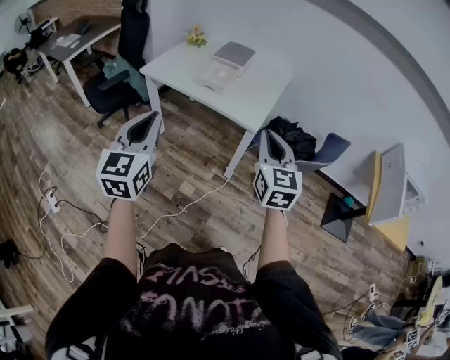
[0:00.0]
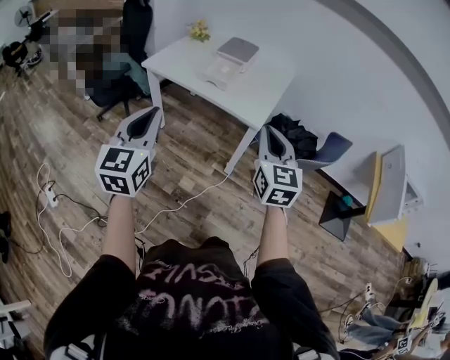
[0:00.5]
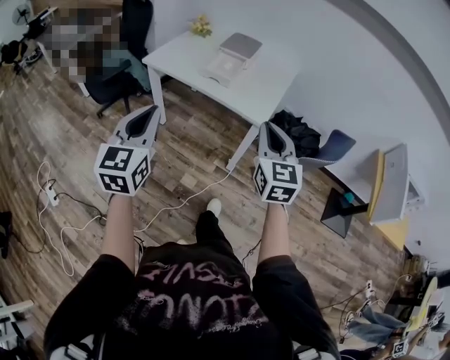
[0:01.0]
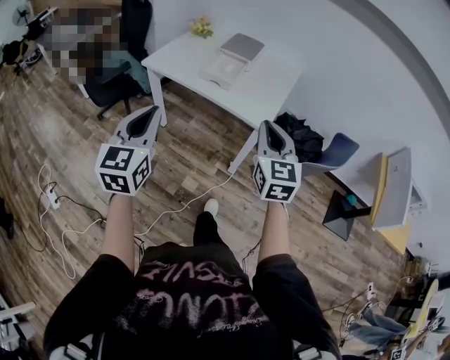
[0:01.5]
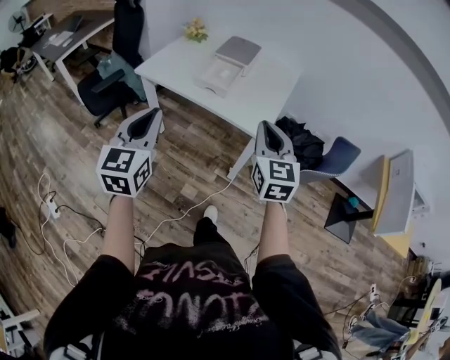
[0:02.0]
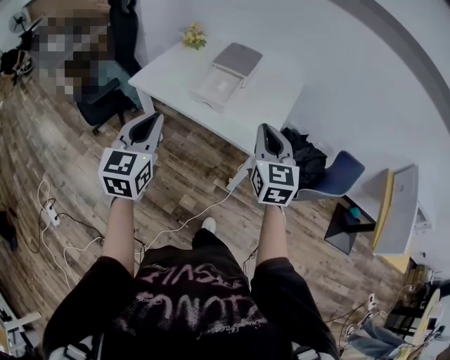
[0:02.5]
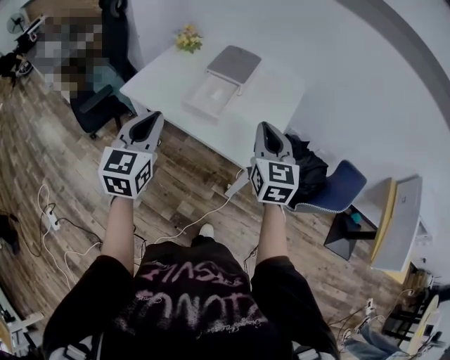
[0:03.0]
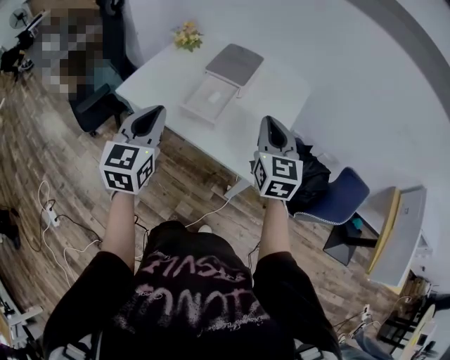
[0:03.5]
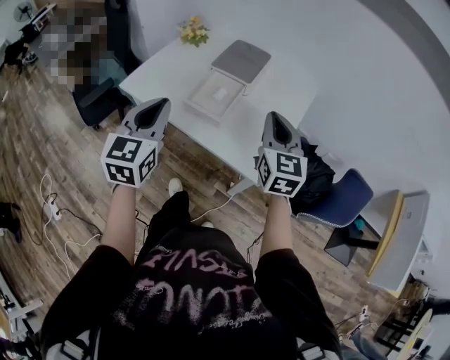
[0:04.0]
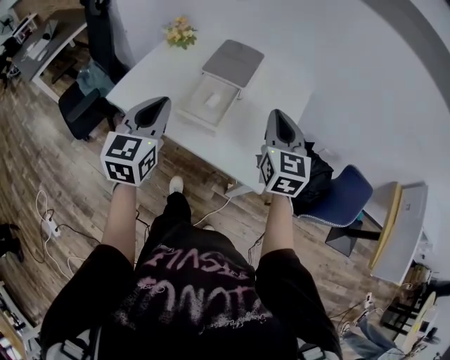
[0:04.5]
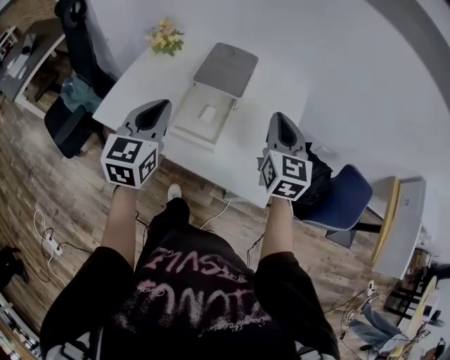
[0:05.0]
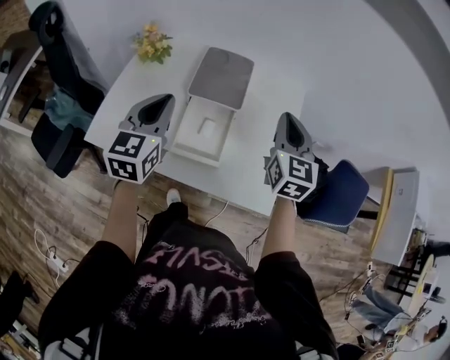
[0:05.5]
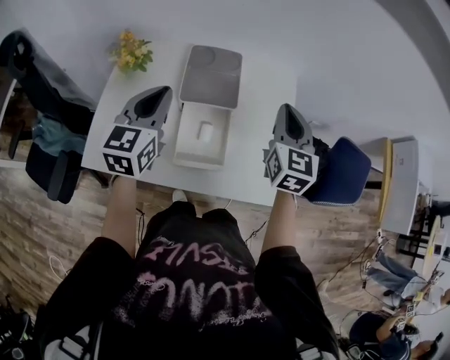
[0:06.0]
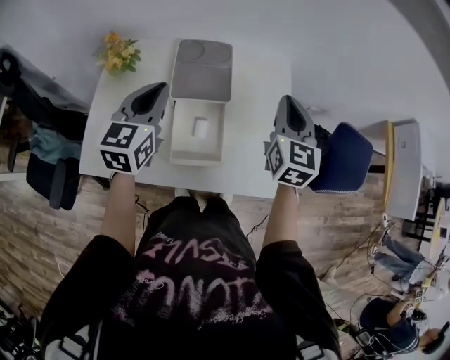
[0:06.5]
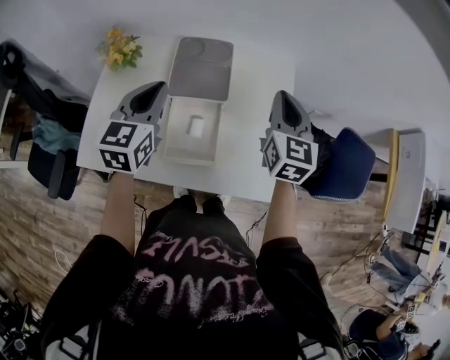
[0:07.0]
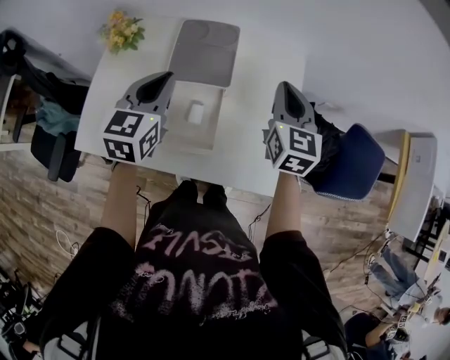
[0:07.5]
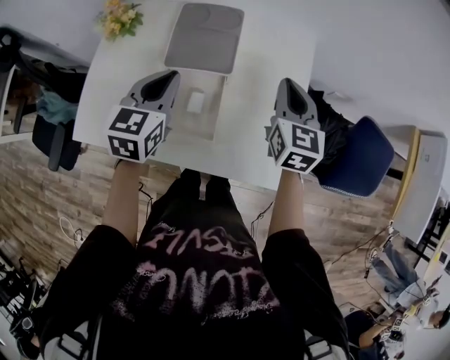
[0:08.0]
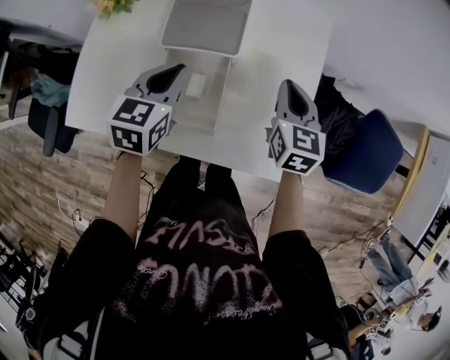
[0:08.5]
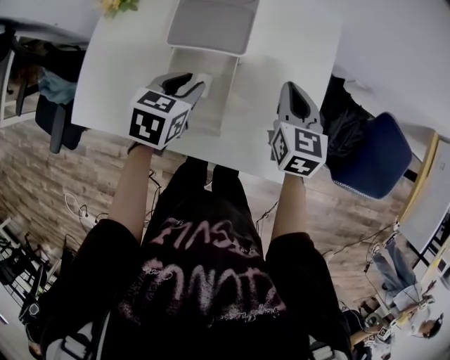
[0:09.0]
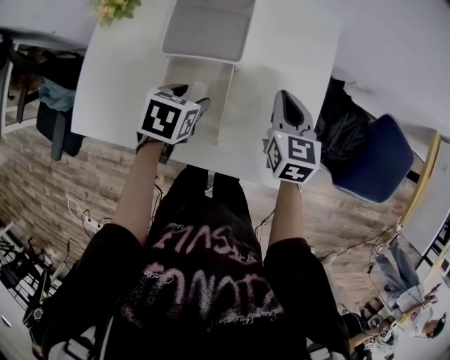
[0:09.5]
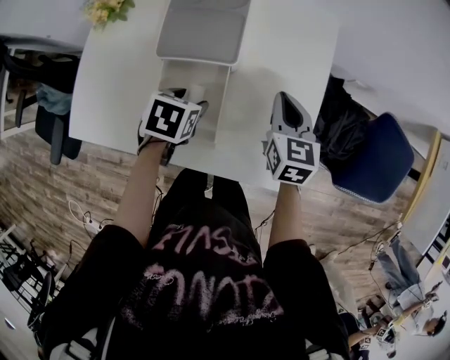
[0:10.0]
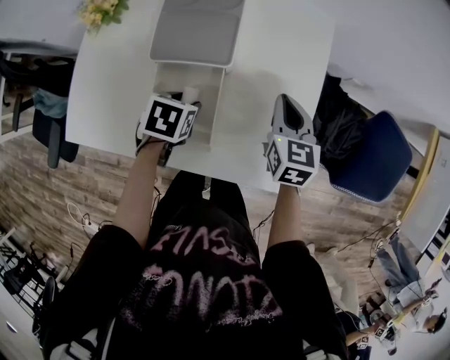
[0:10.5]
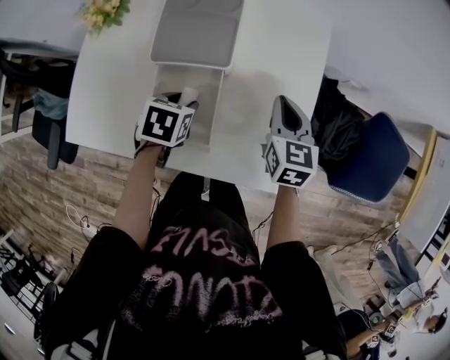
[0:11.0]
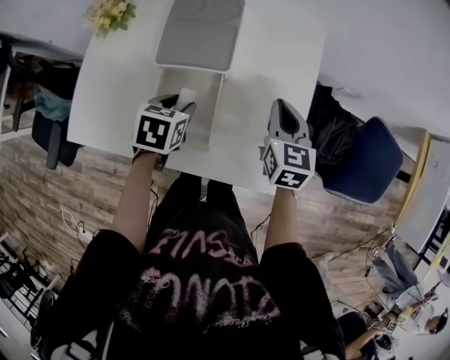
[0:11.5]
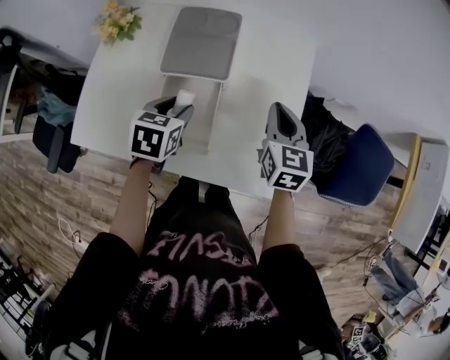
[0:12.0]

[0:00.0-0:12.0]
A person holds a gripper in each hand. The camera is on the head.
0:00.0 to 0:02.0: Both grippers travel together forward, approximately 10 cm.
0:02.0 to 0:04.0: Both grippers travel together forward, some 25 cm.
0:04.0 to 0:06.0: The left gripper ends up about 30 cm from where it was, and rotates about 30 degrees, while the right gripper shifts by approximately 20 cm, and changes its angle by some 30 degrees.
0:06.0 to 0:08.0: The right gripper heads downward, covering about 10 cm; the left gripper travels downward and to the right by approximately 10 cm.
0:08.0 to 0:10.0: The right gripper shifts some 10 cm downward. Meanwhile the left gripper goes about 20 cm downward, tips its fingers downward by some 40 degrees, and opens its fingers.
0:10.0 to 0:12.0: Both grippers travel together upward, roughly 5 cm.

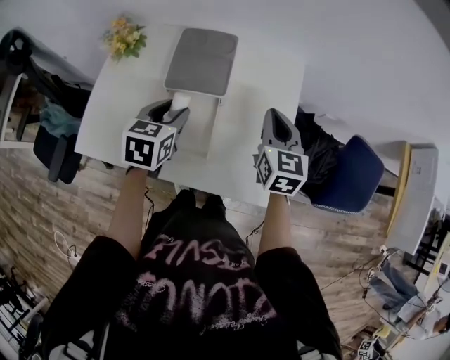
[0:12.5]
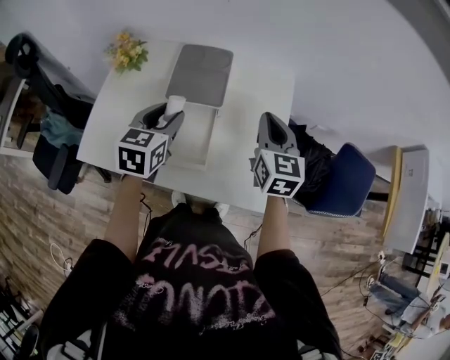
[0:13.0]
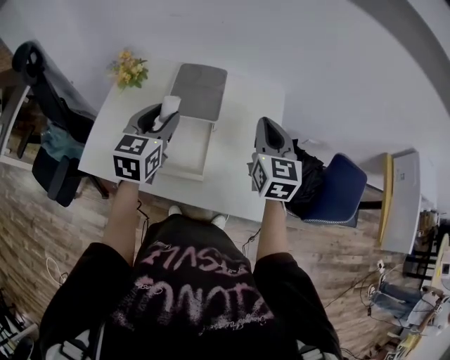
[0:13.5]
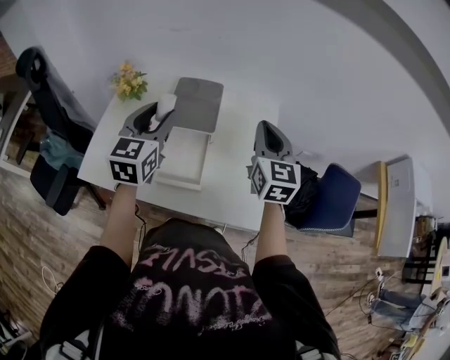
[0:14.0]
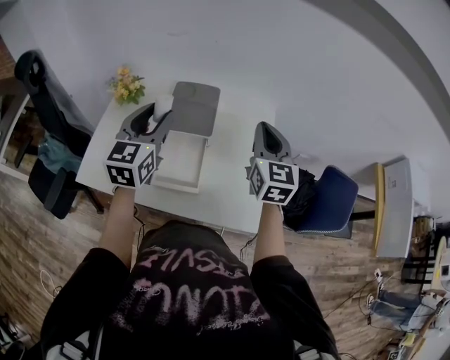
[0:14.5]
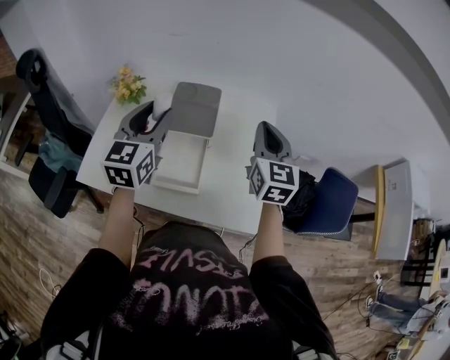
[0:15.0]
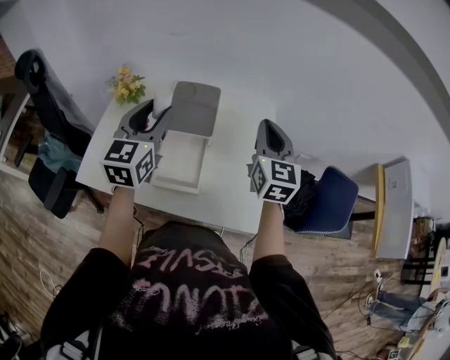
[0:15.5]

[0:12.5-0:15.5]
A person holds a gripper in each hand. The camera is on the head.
0:12.5 to 0:14.0: Both grippers travel together upward, approximately 15 cm. The left gripper rotates about 30 degrees.
0:14.0 to 0:15.5: The grippers move only a little.

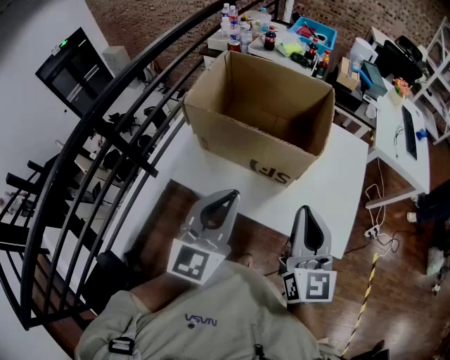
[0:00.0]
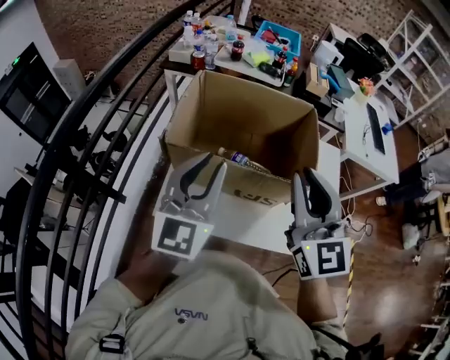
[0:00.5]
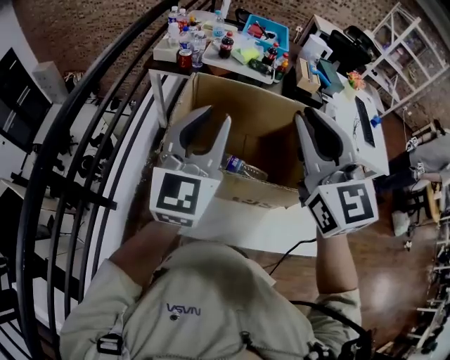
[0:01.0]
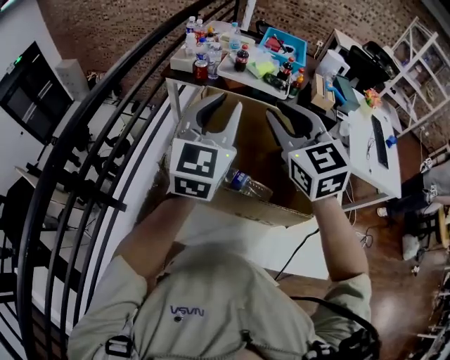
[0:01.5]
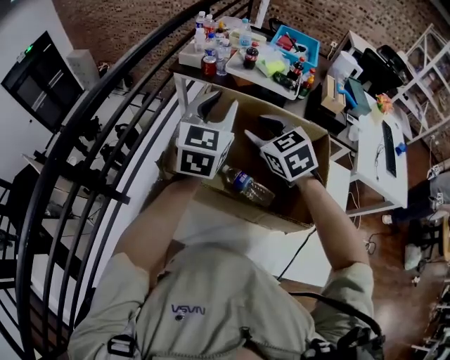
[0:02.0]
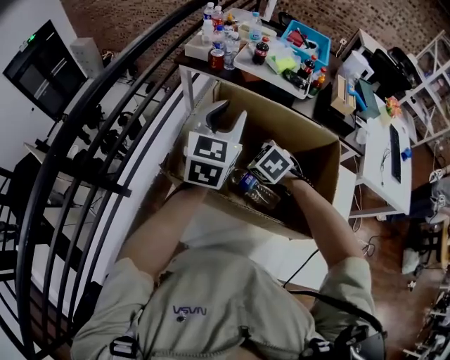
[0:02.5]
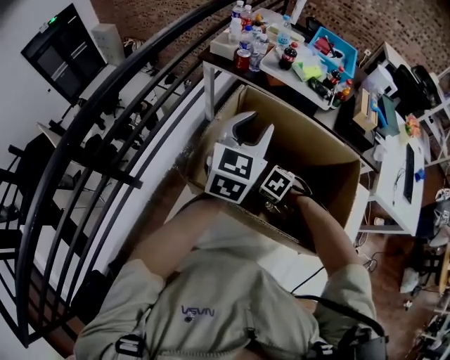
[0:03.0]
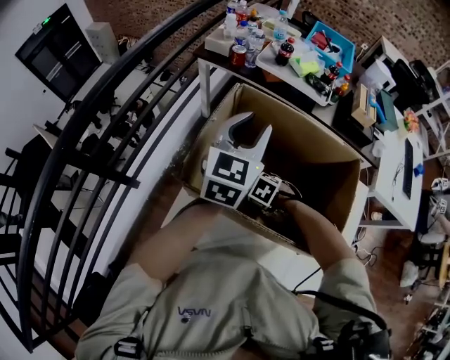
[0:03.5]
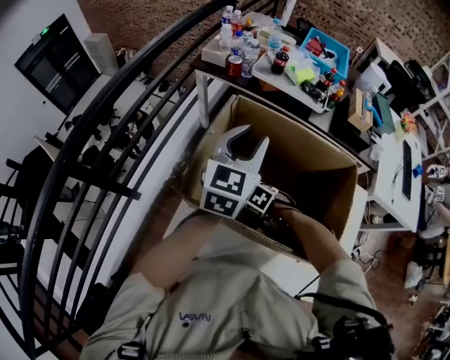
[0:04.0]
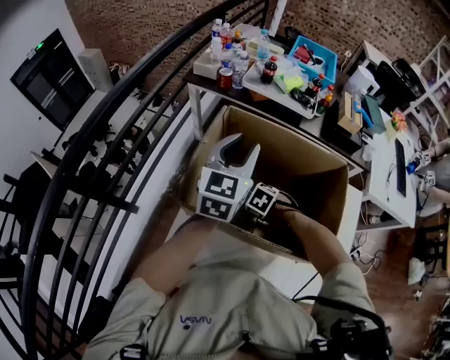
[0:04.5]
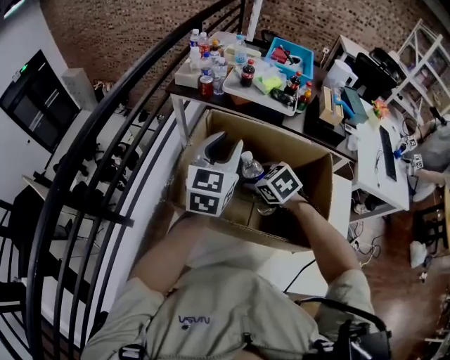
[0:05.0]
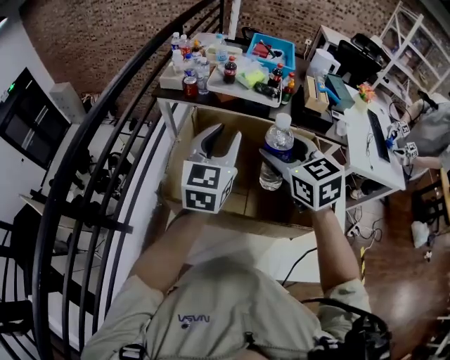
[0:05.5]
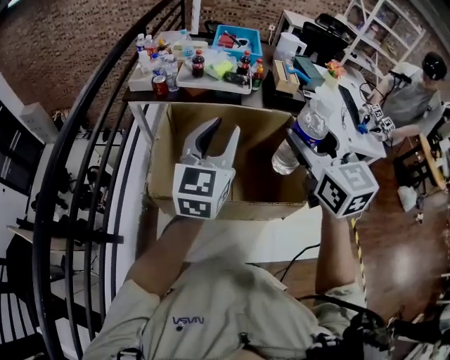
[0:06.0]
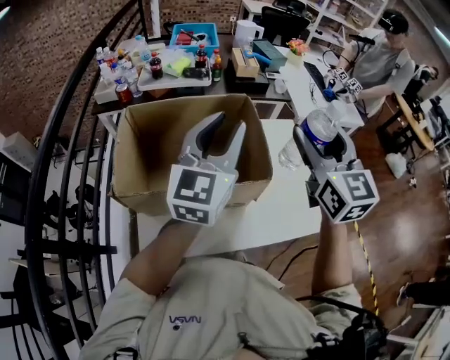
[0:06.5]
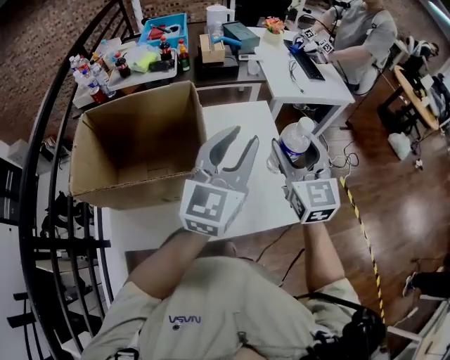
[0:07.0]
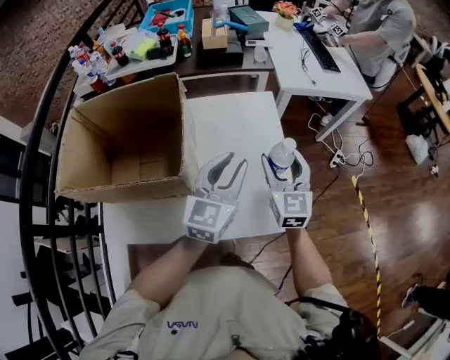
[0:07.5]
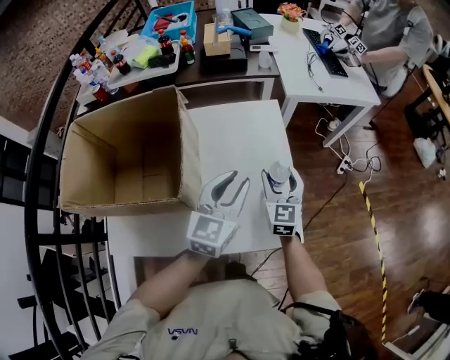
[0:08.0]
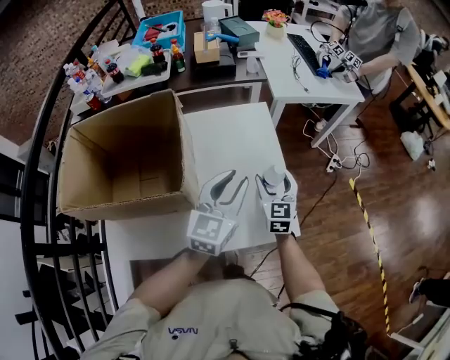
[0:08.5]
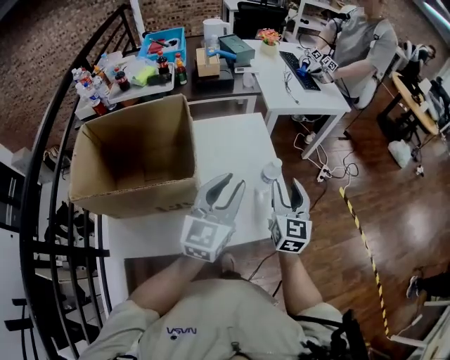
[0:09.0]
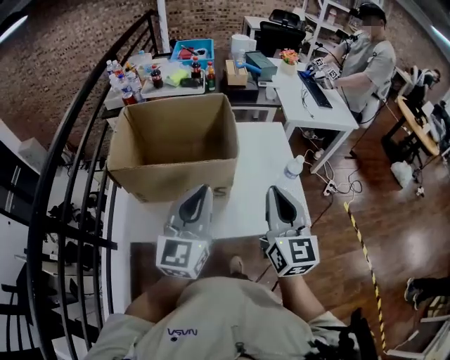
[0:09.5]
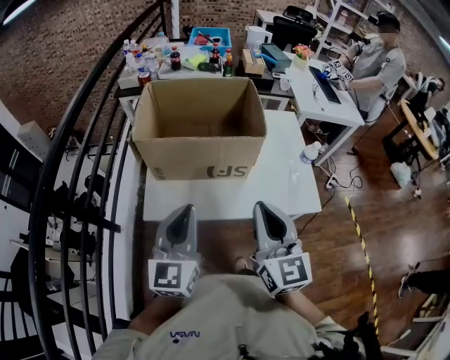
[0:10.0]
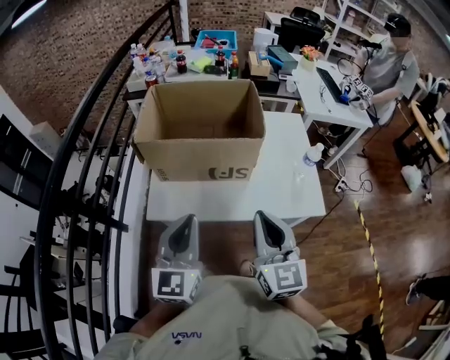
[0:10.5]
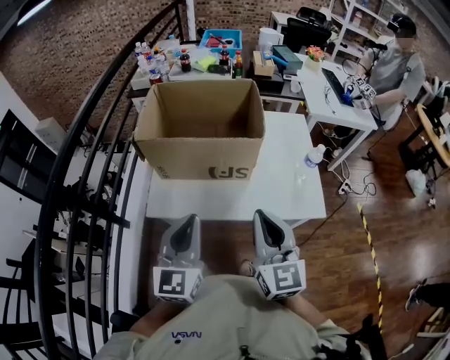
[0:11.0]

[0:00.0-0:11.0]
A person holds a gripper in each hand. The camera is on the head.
0:00.0 to 0:02.0: Both grippers travel together forward, about 40 cm. The right gripper tips its fingers downward by some 30 degrees, and opens. The left gripper opens its fingers.
0:02.0 to 0:03.5: The right gripper heads downward, covering about 30 cm, tilts its fingers approximately 50 degrees downward, and opens up.
0:03.5 to 0:05.5: The right gripper heads upward, covering roughly 35 cm, and tilts its fingers roughly 60 degrees upward. Meanwhile the left gripper changes place by about 5 cm.
0:05.5 to 0:07.5: Both grippers are carried roughly 40 cm. The left gripper turns by roughly 20 degrees; the right gripper swivels approximately 40 degrees.
0:07.5 to 0:09.0: The right gripper is displaced backward by some 10 cm, and goes downward and returns, approximately 10 cm each way. Meanwhile the left gripper travels backward and upward by about 10 cm.
0:09.0 to 0:11.0: The right gripper shifts by about 35 cm, changes its angle by about 30 degrees, and closes up, while the left gripper ends up some 35 cm from where it was, changes its angle by approximately 30 degrees, and closes its fingers.
